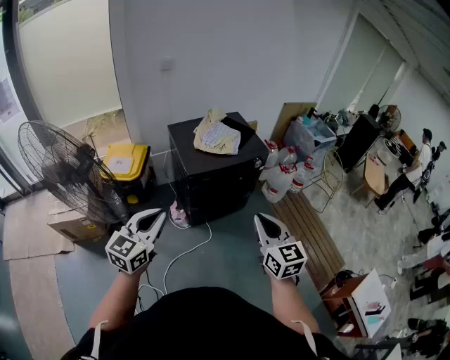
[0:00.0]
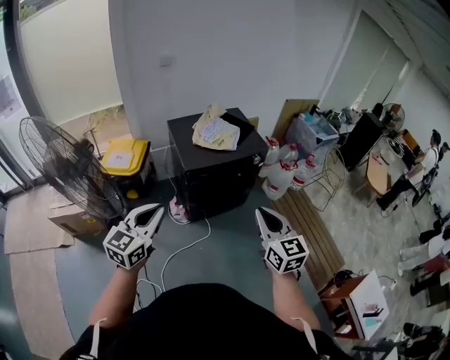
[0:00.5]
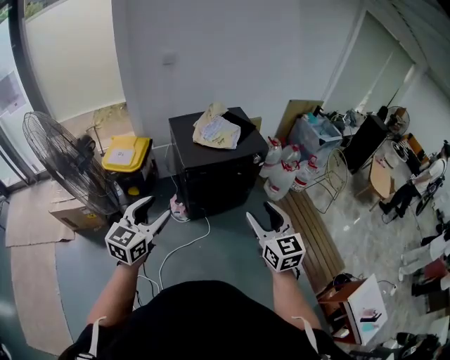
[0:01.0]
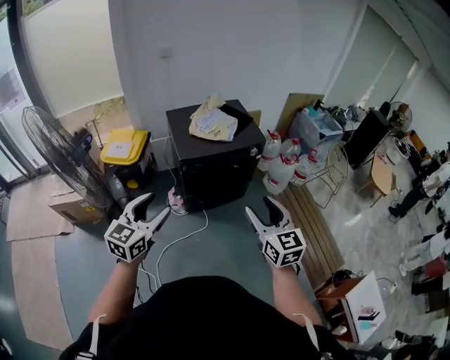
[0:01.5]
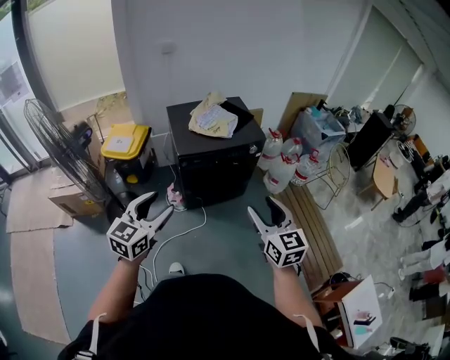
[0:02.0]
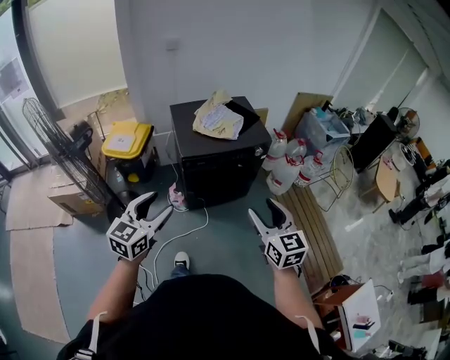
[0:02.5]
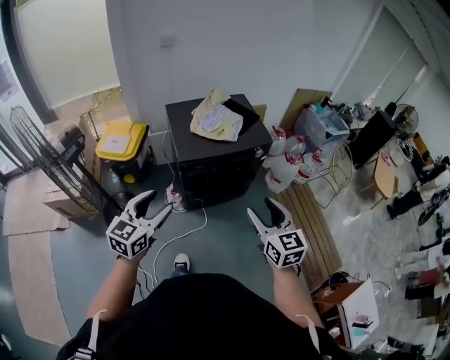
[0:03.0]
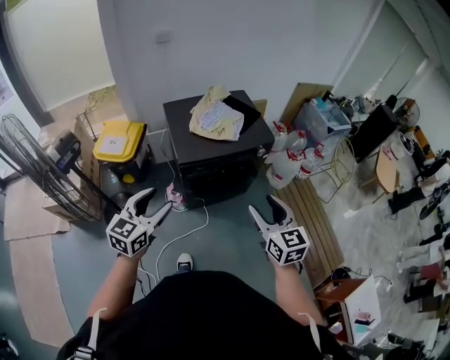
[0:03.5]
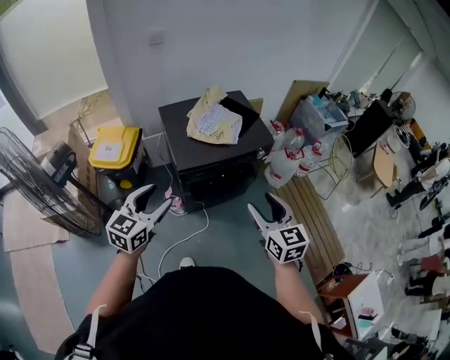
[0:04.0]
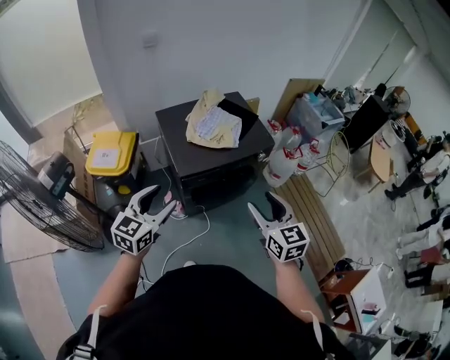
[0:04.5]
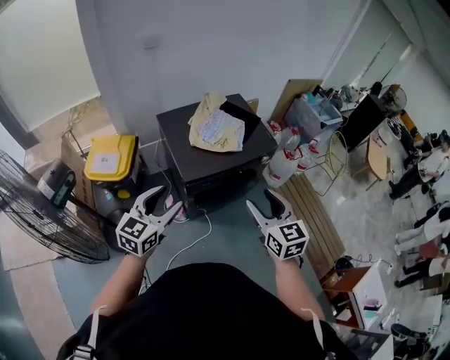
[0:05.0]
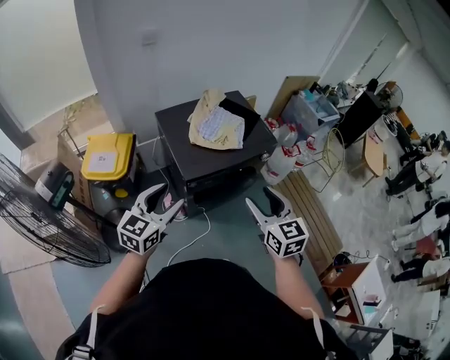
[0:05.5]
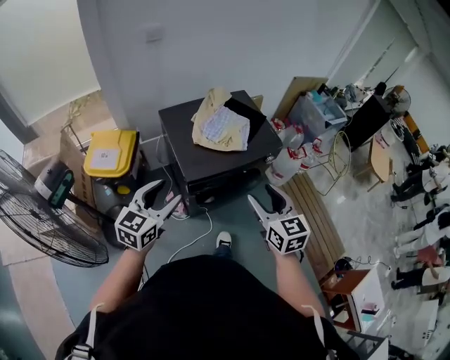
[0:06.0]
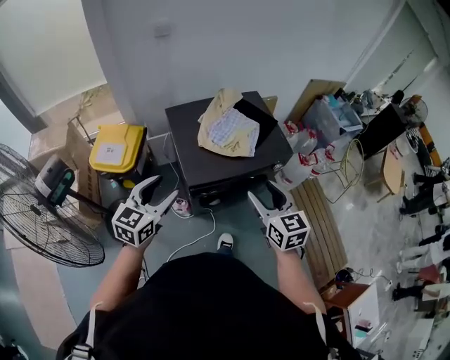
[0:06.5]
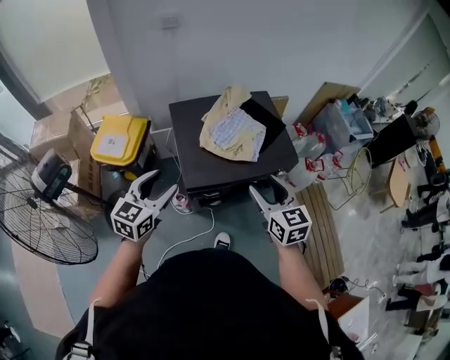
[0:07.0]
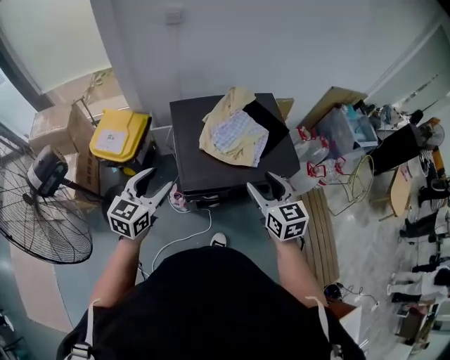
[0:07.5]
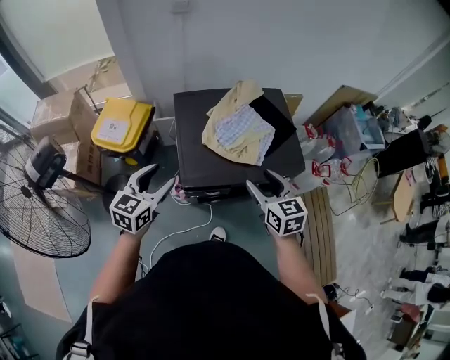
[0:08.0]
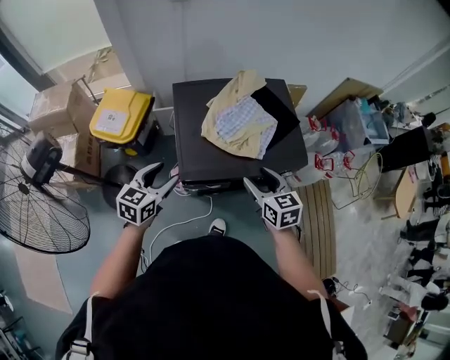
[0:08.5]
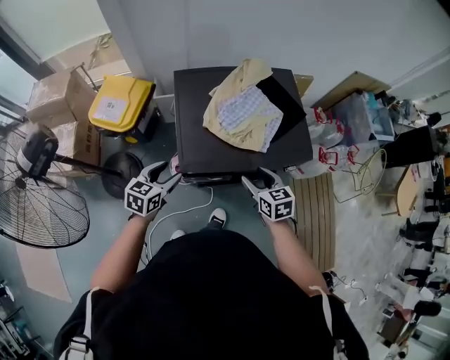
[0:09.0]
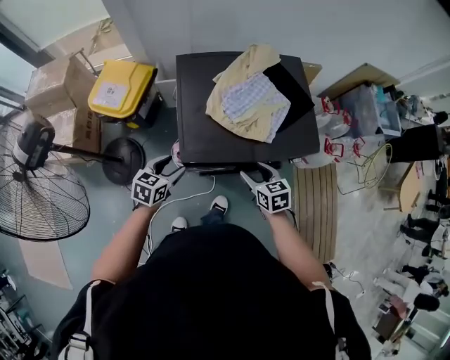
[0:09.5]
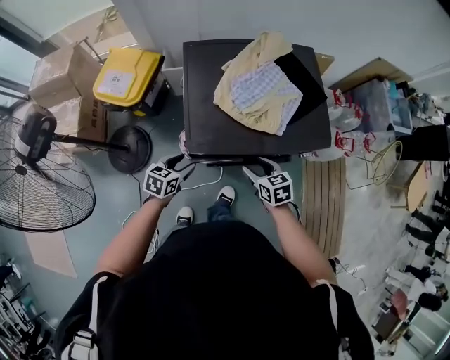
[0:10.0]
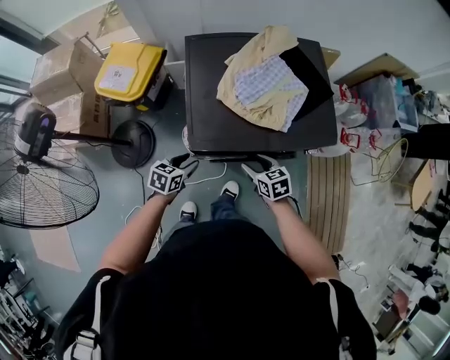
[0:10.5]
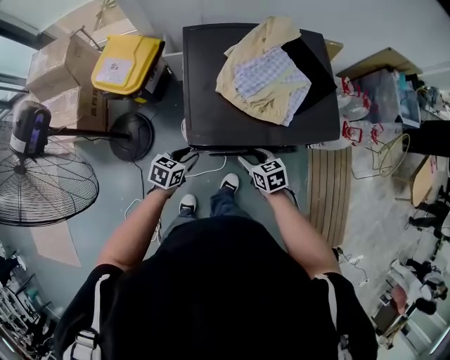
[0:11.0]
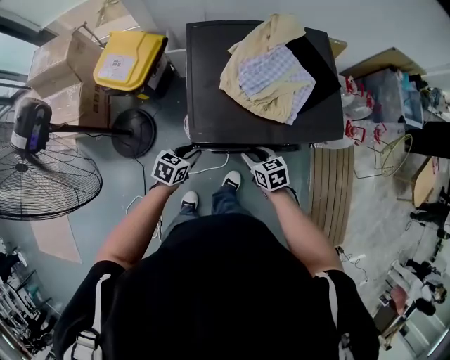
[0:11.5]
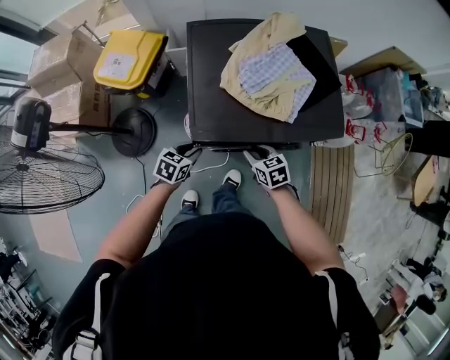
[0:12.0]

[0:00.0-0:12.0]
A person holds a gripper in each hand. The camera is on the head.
0:00.0 to 0:02.0: Both grippers travel together to the right, about 10 cm. The left gripper opens its fingers. The right gripper opens up.
0:02.0 to 0:04.0: The right gripper is displaced forward and to the left by some 20 cm. The left gripper travels forward by about 20 cm.
0:04.0 to 0:06.0: The two grippers go roughly 10 cm forward and to the left.
0:06.0 to 0:08.0: Both grippers move forward and downward, roughly 20 cm.
0:08.0 to 0:10.0: The grippers both shift downward by about 25 cm. The left gripper turns by about 30 degrees. The right gripper rotates some 20 degrees.
0:10.0 to 0:12.0: The left gripper closes up. Meanwhile the right gripper heads downward, covering approximately 5 cm, and closes.

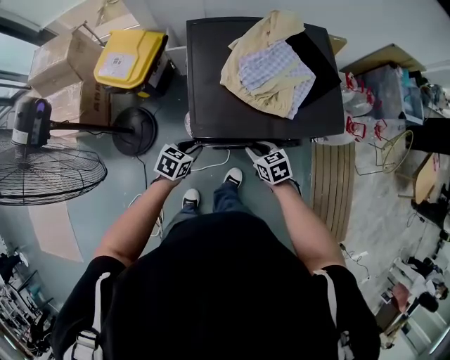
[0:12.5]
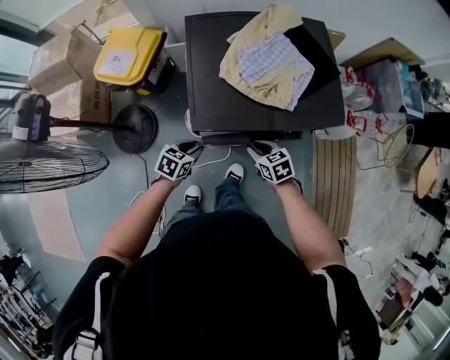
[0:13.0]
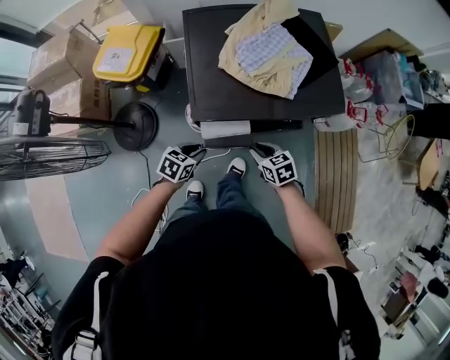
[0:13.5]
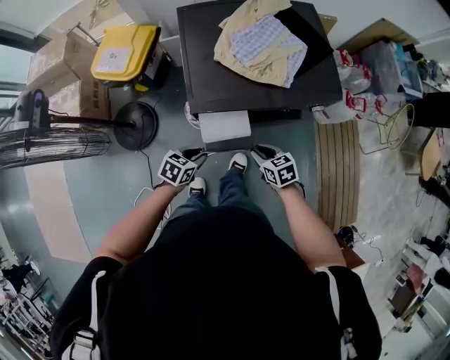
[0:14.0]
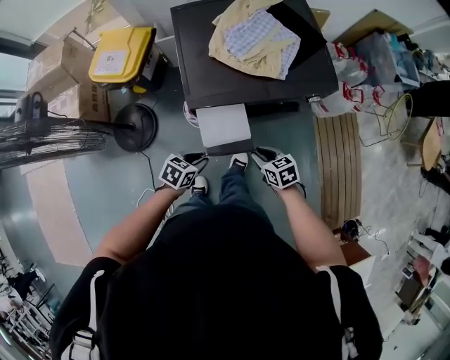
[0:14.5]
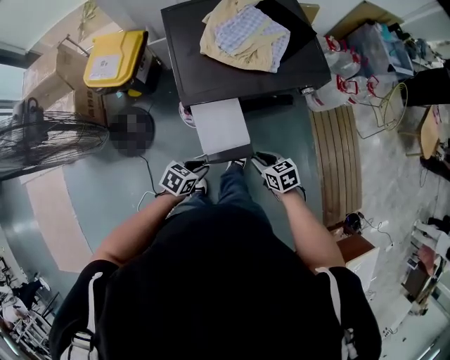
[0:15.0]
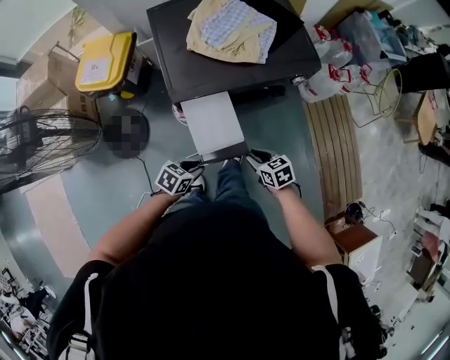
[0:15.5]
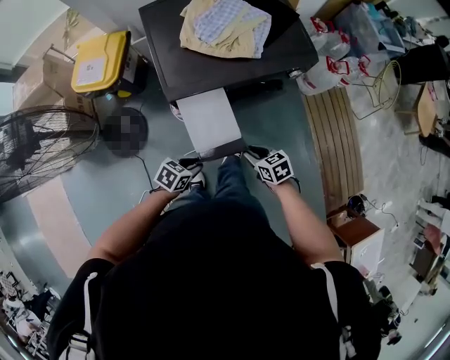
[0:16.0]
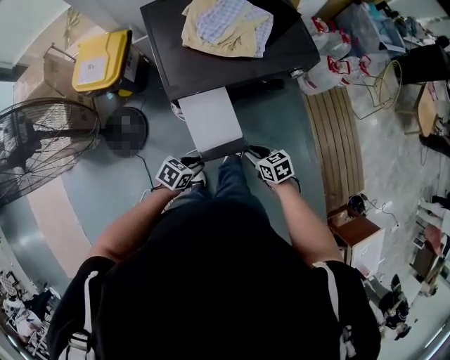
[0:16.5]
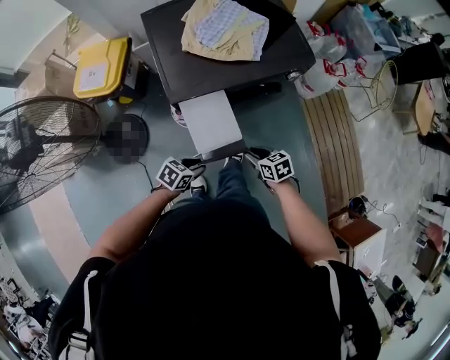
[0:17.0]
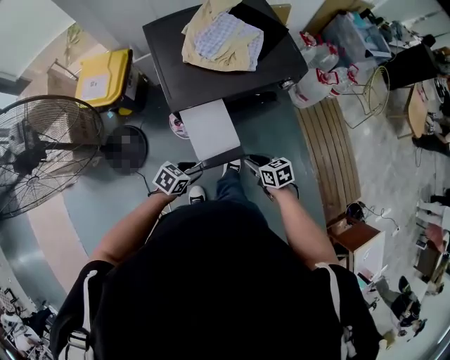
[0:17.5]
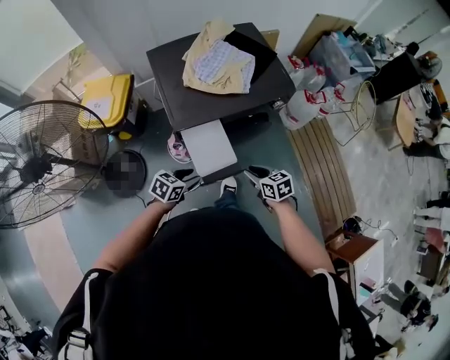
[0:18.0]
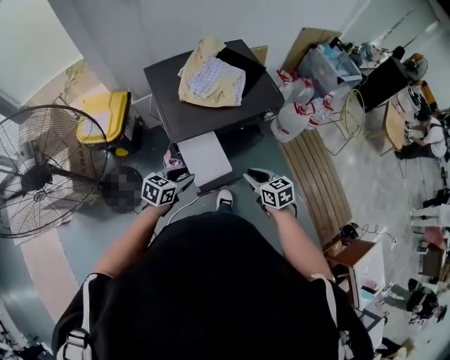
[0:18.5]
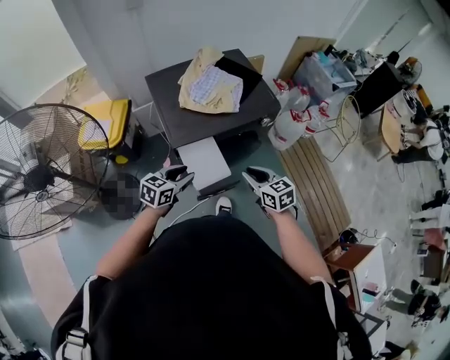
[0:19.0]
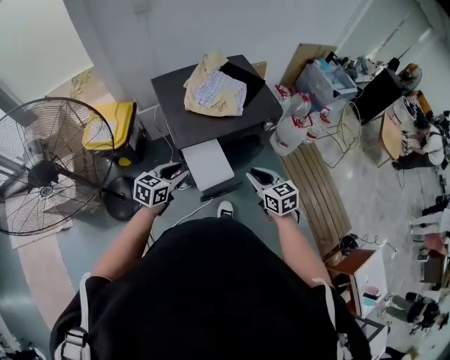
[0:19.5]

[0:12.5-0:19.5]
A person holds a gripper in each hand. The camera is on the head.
0:12.5 to 0:14.5: Both grippers travel together backward, roughly 15 cm.
0:14.5 to 0:16.0: The right gripper ends up about 5 cm from where it was; the left gripper ends up about 5 cm from where it was.
0:16.0 to 0:17.5: The grippers stay close to where they were, moving slightly.
0:17.5 to 0:19.5: The grippers both shift upward by roughly 20 cm. The right gripper rotates approximately 30 degrees, while the left gripper rotates approximately 30 degrees.

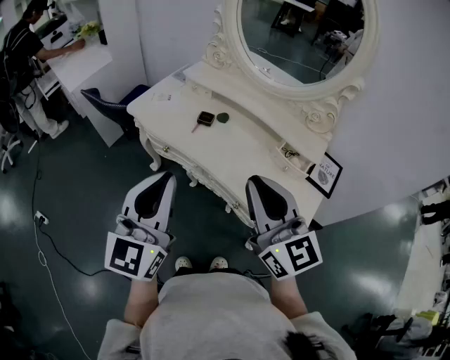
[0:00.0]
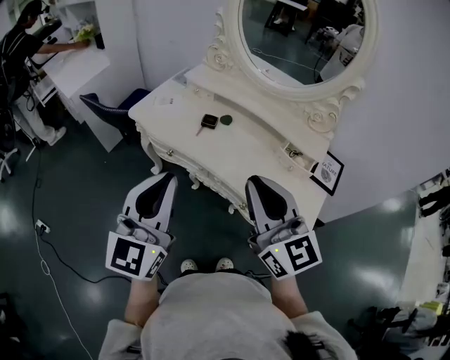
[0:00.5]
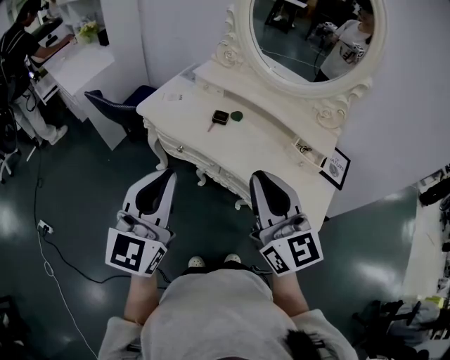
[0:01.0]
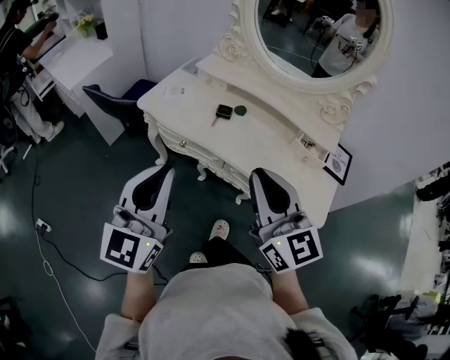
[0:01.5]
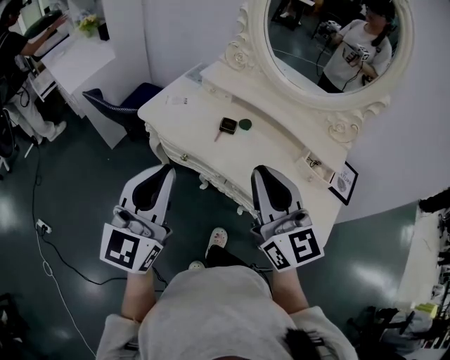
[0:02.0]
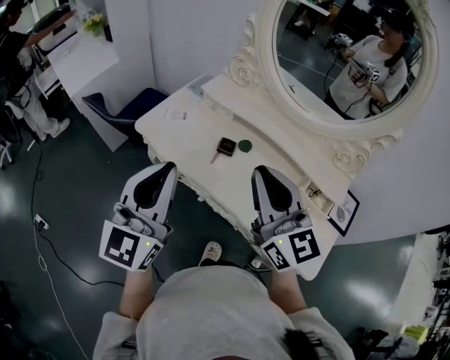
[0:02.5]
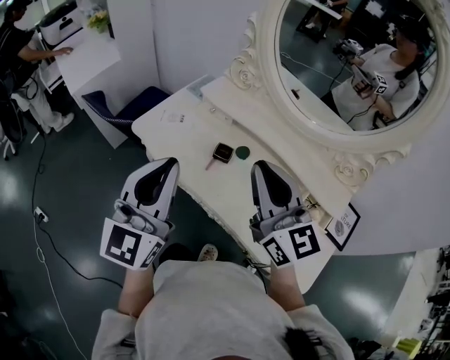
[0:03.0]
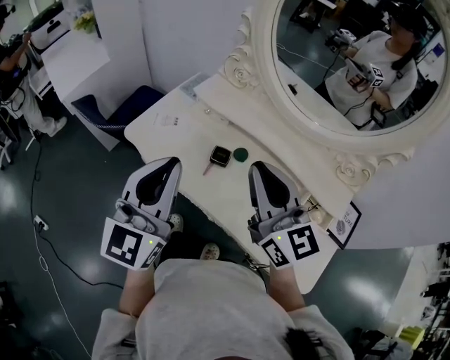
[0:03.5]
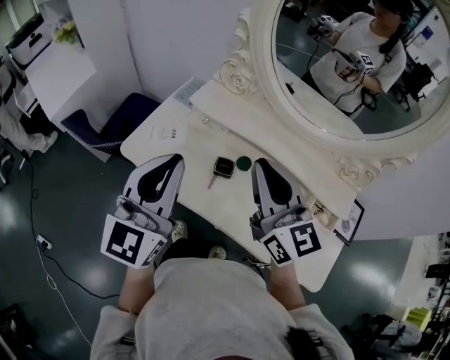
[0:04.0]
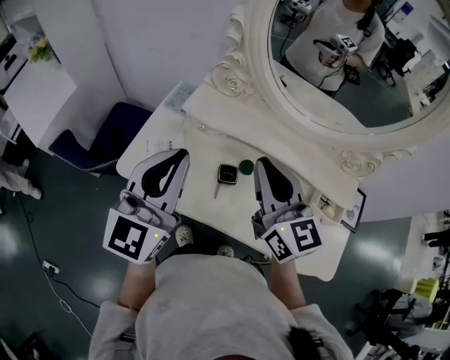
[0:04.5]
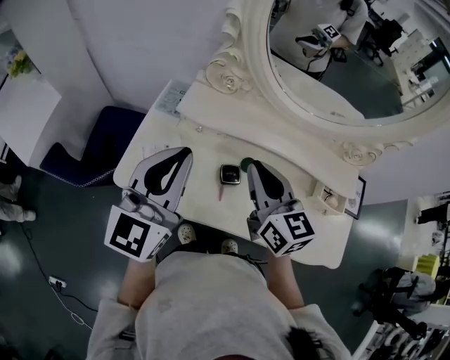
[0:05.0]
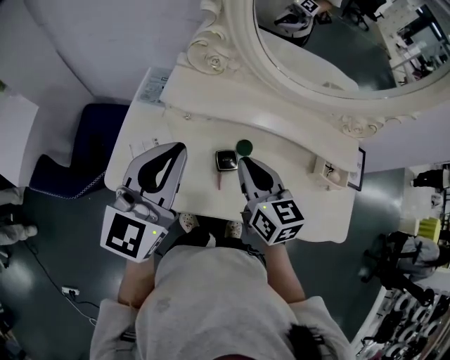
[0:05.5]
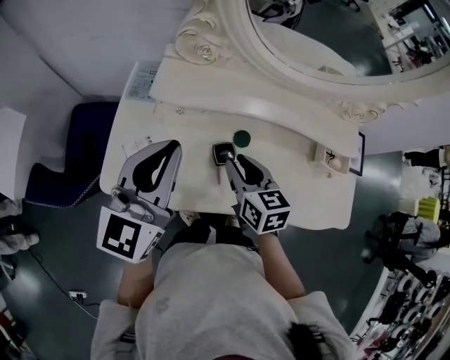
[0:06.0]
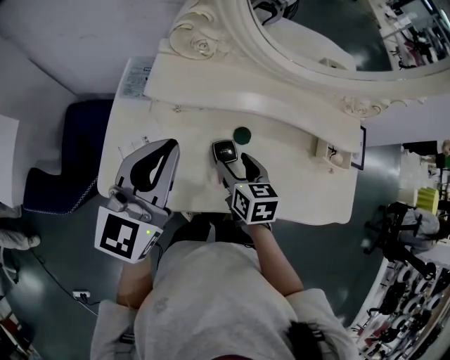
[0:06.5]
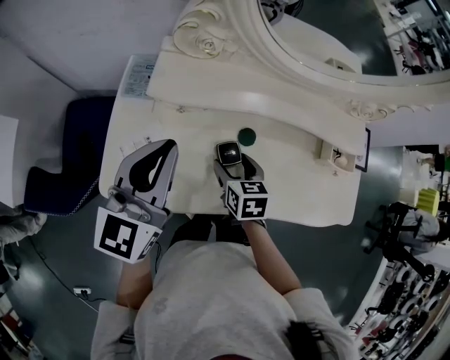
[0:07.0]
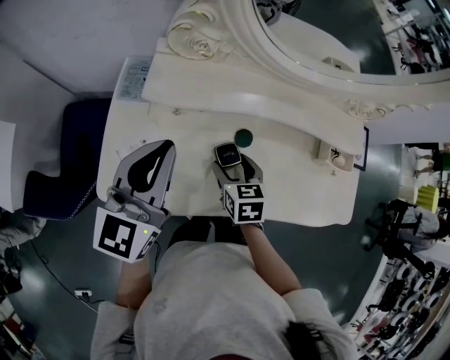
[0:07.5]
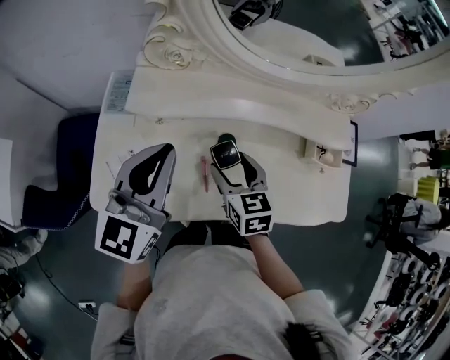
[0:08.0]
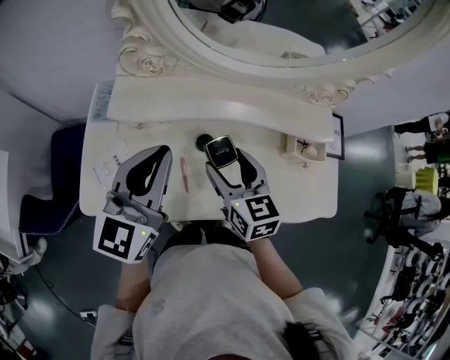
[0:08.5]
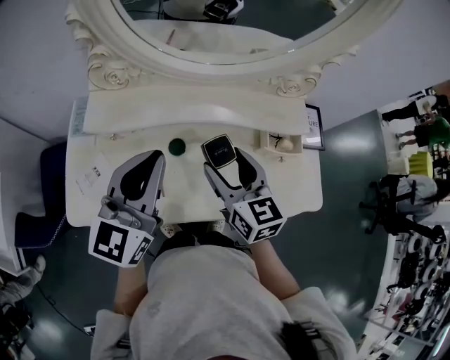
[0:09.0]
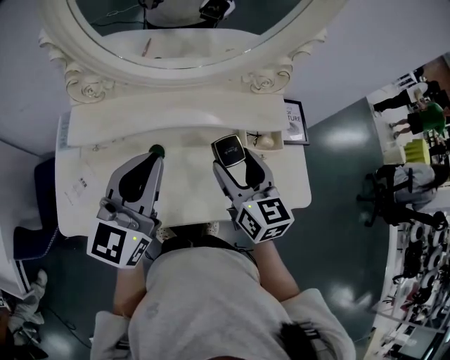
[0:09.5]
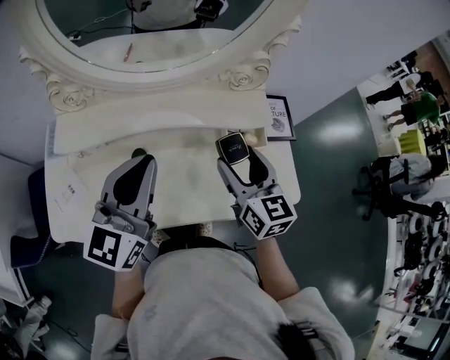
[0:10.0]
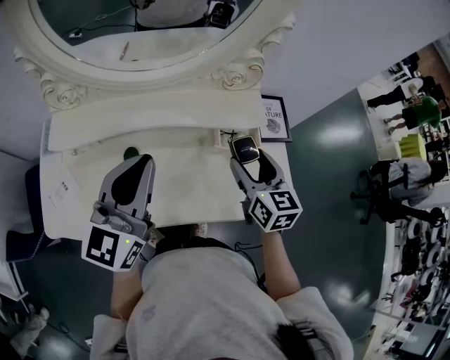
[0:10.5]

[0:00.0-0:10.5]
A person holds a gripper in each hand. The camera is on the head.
0:00.0 to 0:02.0: Both grippers travel together to the left and forward, some 15 cm.
0:02.0 to 0:04.0: The two grippers go some 20 cm forward.
0:04.0 to 0:06.5: The right gripper heads downward, covering roughly 30 cm, angles its fingers downward, by about 40 degrees, and opens, while the left gripper changes place by some 15 cm, and swivels about 30 degrees.
0:06.5 to 0:08.5: The right gripper goes roughly 10 cm upward and to the right, while the left gripper shifts about 10 cm to the right.
0:08.5 to 0:10.5: The left gripper travels to the right by approximately 20 cm, while the right gripper shifts about 30 cm to the right.
